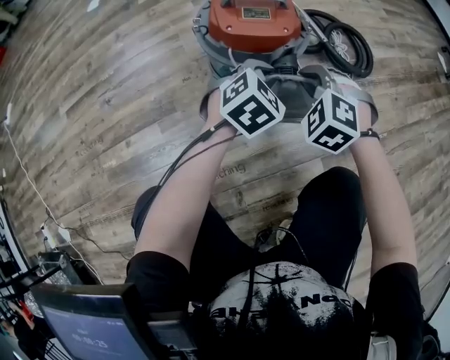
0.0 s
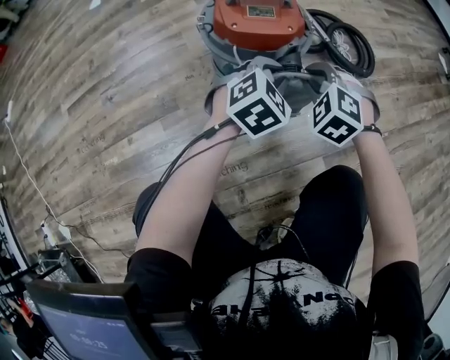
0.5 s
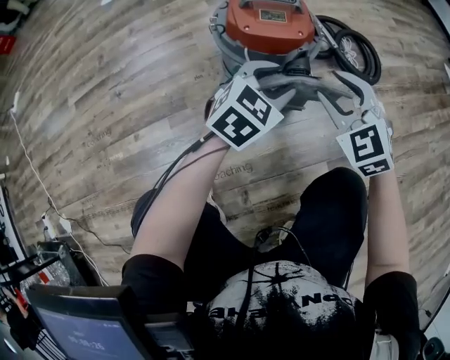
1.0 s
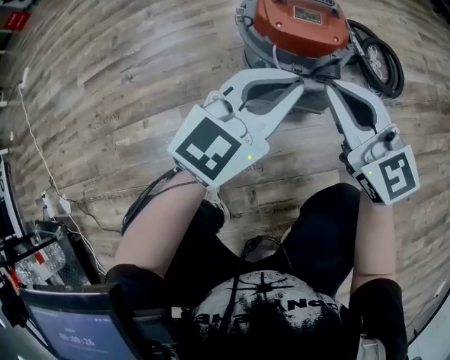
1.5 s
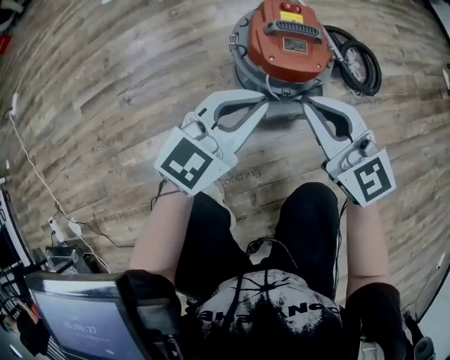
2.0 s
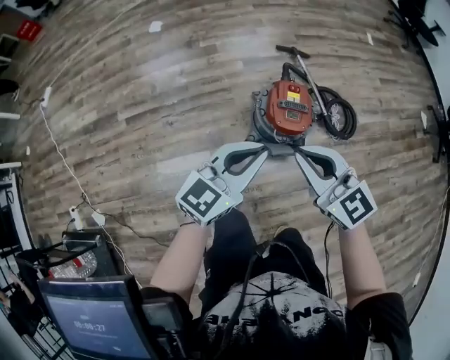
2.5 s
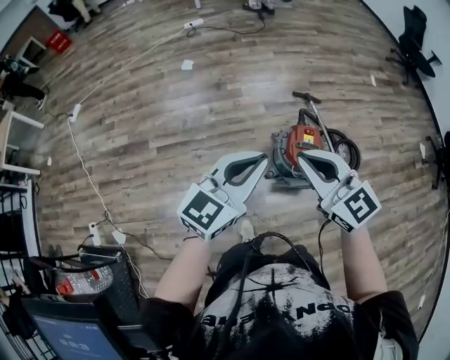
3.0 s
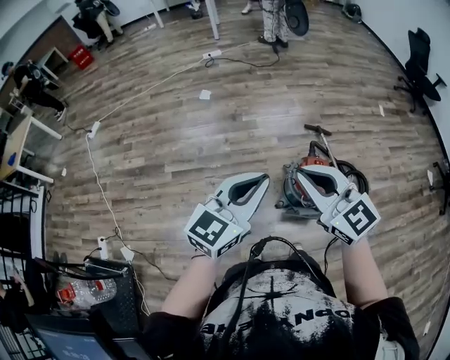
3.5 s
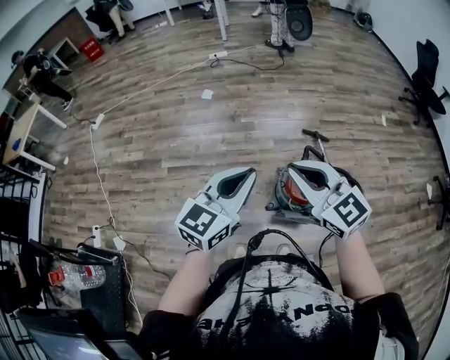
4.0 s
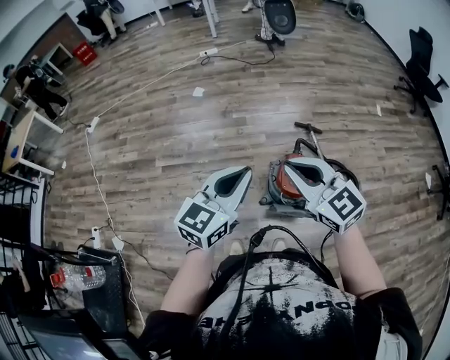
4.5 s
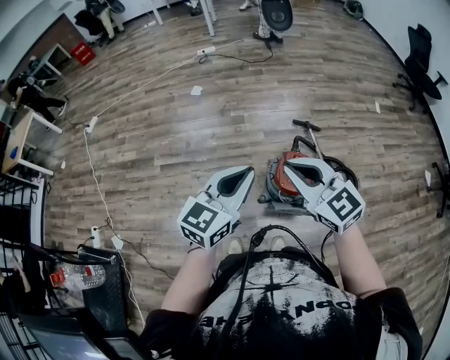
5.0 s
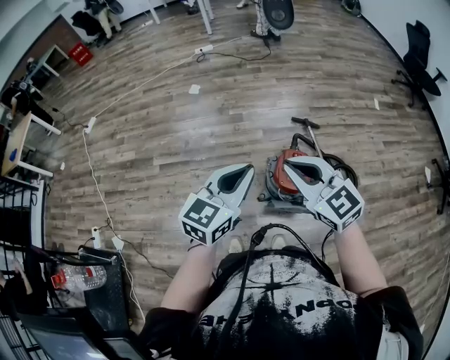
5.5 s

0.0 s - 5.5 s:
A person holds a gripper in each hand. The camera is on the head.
0.0 s - 2.0 s: The grippers both shift upward and to the left by approximately 20 cm. The right gripper tips its fingers upward by roughly 40 degrees, and opens and closes again, while the left gripper angles its fingers upward, by roughly 30 degrees, and opens and closes again.
2.0 s - 3.5 s: The grippers both shift upward and to the left by approximately 60 cm. The left gripper changes its angle by approximately 20 degrees.
3.5 s - 5.5 s: The two grippers go some 15 cm to the right.

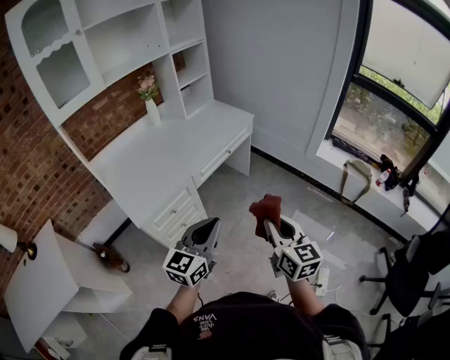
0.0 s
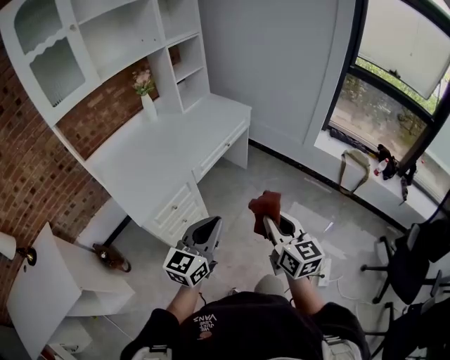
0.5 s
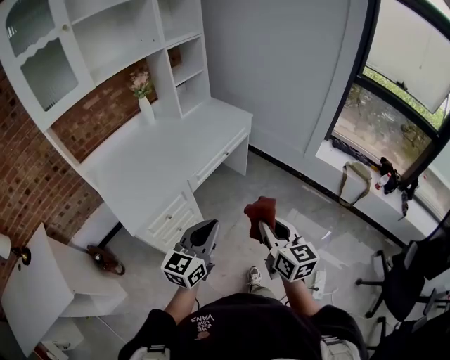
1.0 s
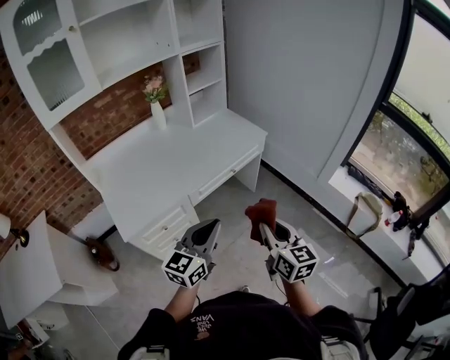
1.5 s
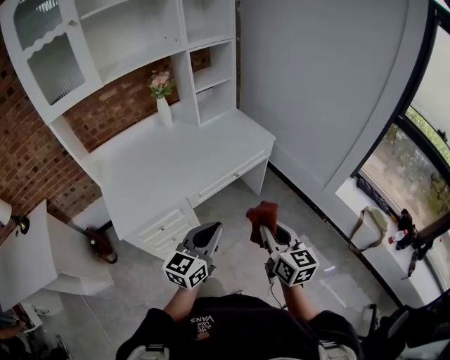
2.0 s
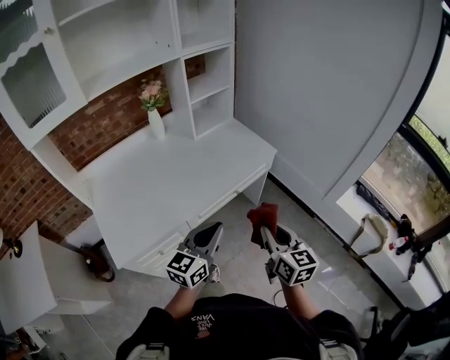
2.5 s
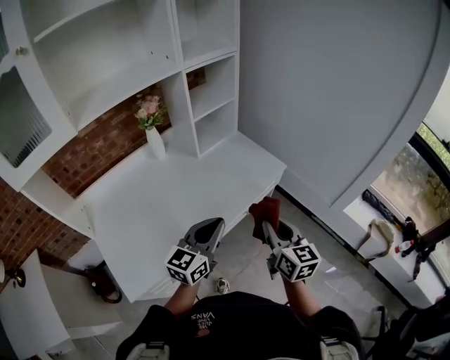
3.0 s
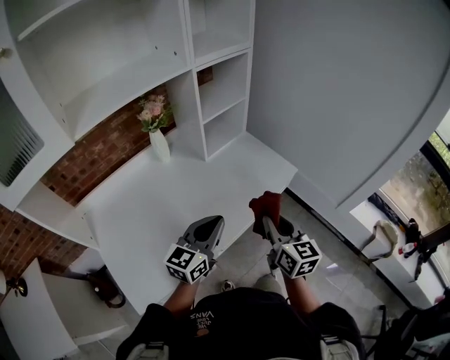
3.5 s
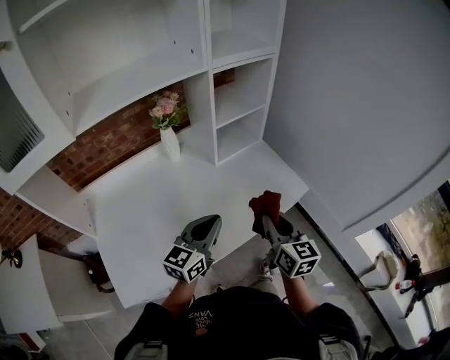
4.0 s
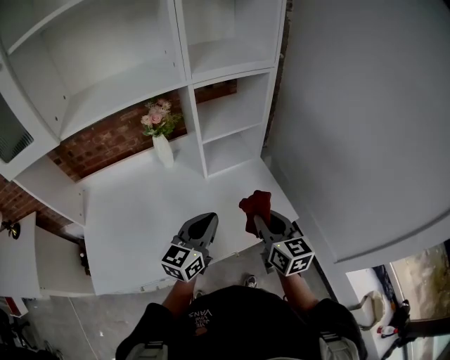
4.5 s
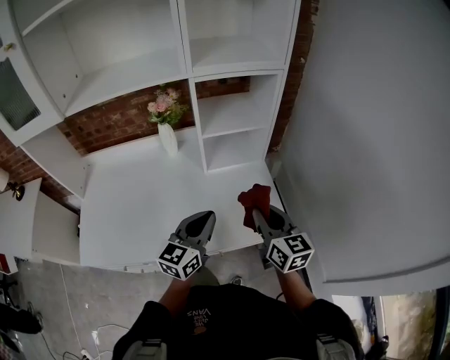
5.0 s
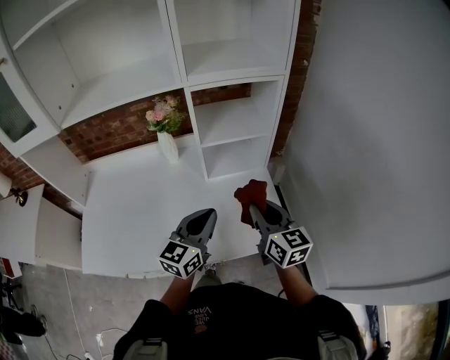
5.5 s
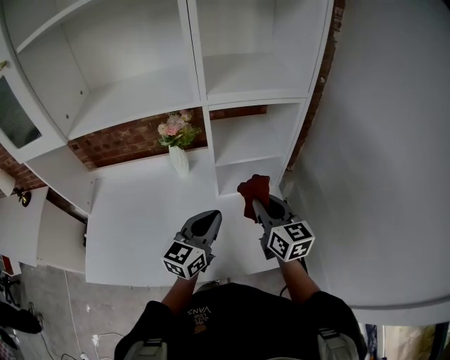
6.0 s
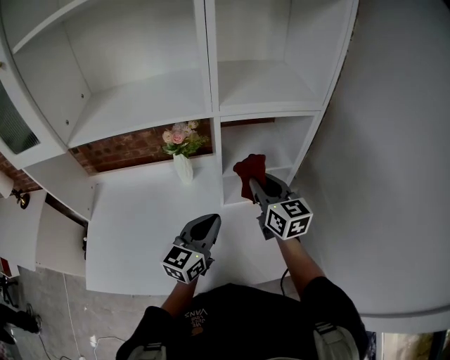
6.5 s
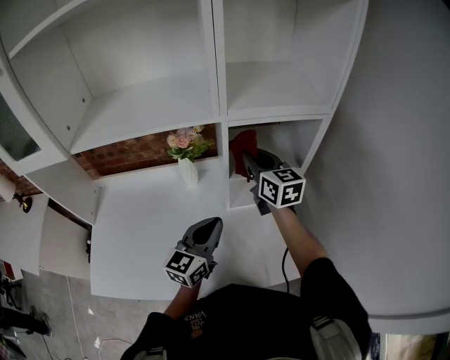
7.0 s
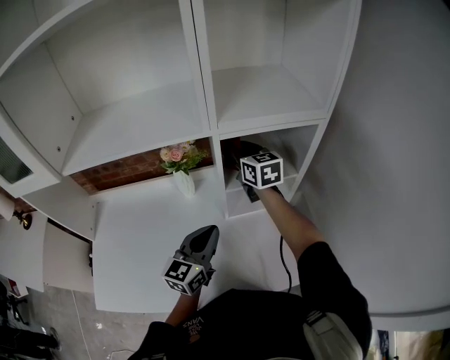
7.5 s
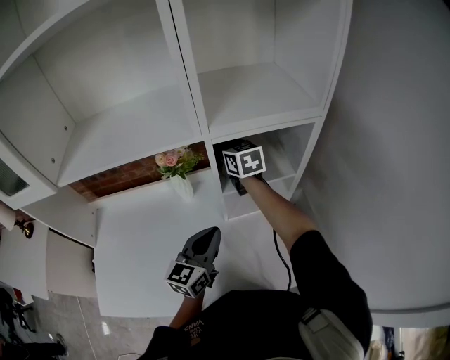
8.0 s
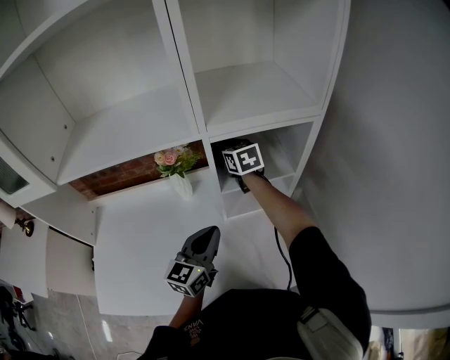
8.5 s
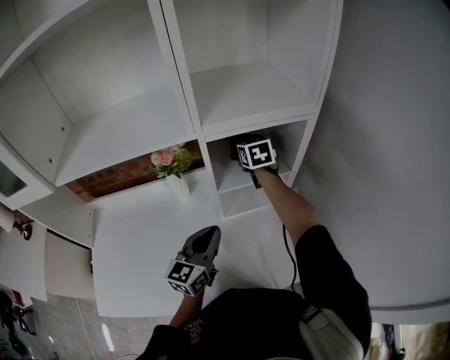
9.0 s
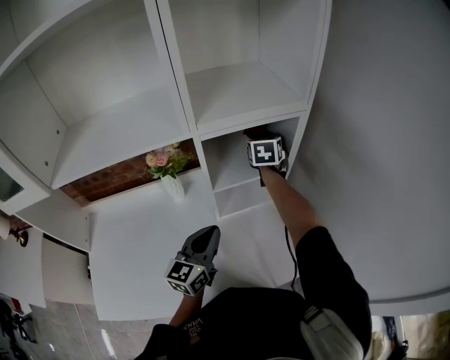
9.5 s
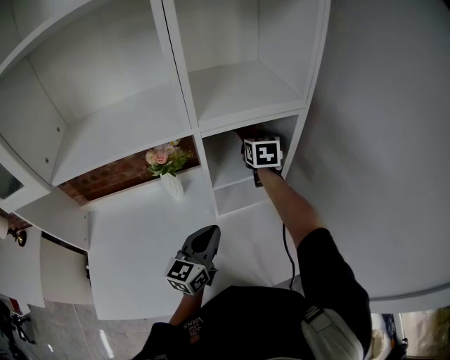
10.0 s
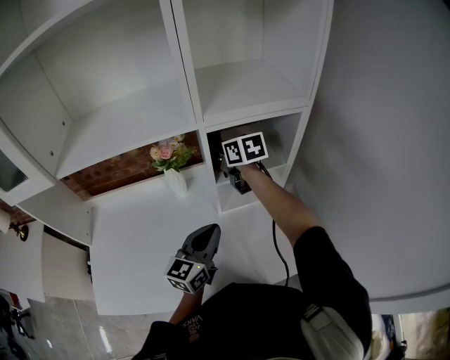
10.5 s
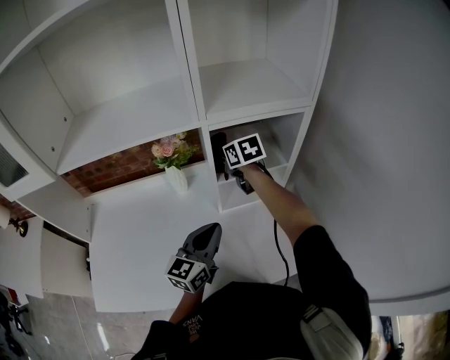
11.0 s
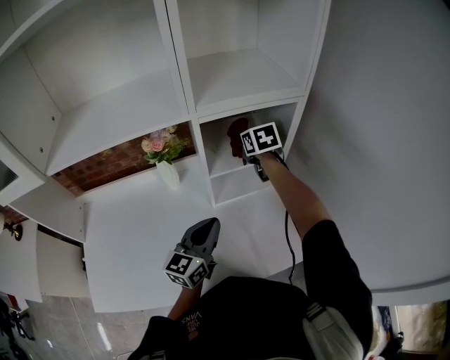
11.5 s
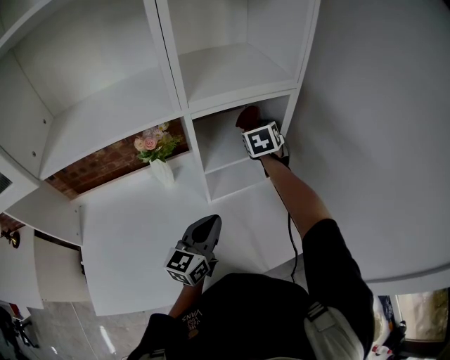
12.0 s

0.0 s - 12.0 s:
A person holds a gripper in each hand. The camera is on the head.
0.0 s - 2.0 s: Both grippers move forward, some 20 cm.
2.0 s - 4.0 s: The pair of grippers is taken forward and to the left, about 40 cm.
4.0 s - 6.0 s: The right gripper shifts by approximately 25 cm, and turns by approximately 30 degrees. Meanwhile the left gripper shifts by about 20 cm, and turns by about 20 degrees.
6.0 s - 8.0 s: The left gripper moves forward, about 10 cm. Meanwhile the right gripper moves forward and to the left, roughly 35 cm.
8.0 s - 10.0 s: The right gripper shifts some 15 cm to the right, and turns by roughly 20 degrees.
10.0 s - 12.0 s: The right gripper travels to the left and back again, approximately 15 cm each way.

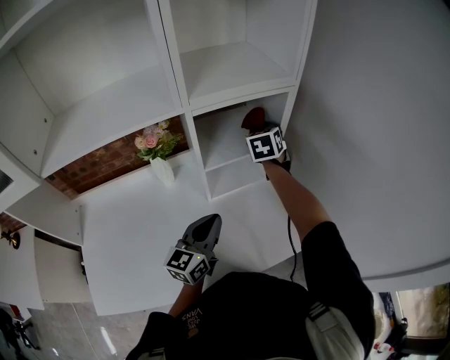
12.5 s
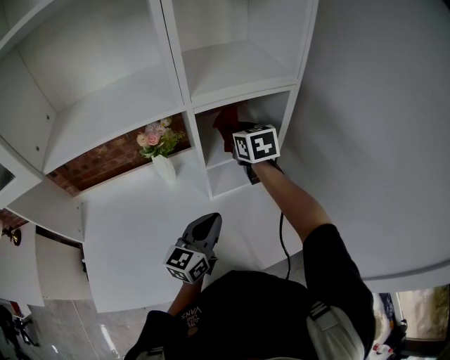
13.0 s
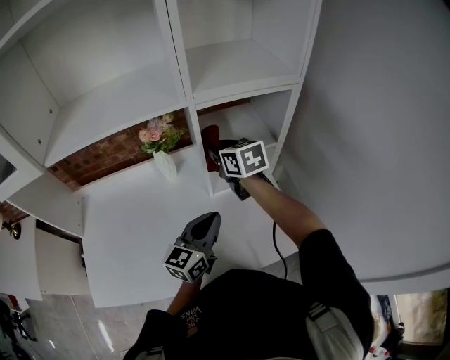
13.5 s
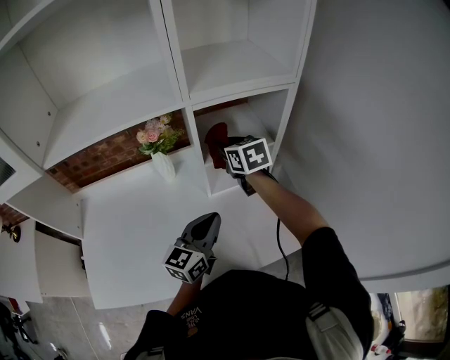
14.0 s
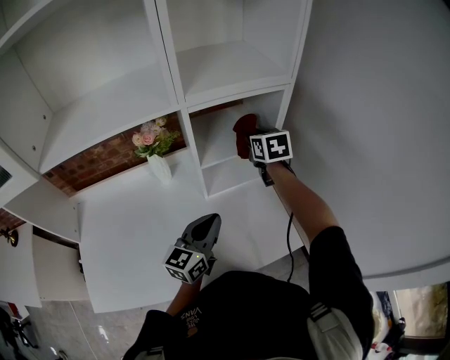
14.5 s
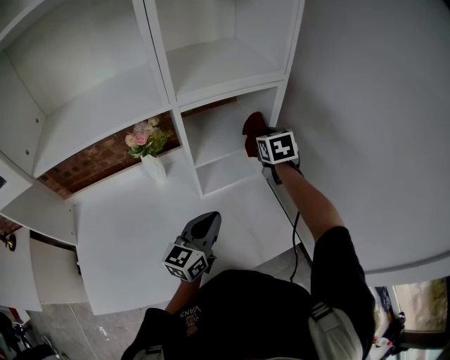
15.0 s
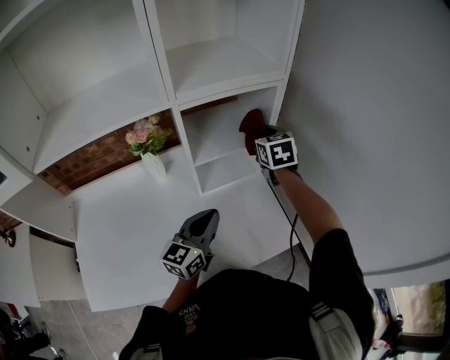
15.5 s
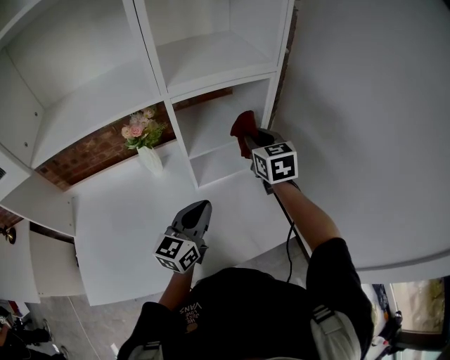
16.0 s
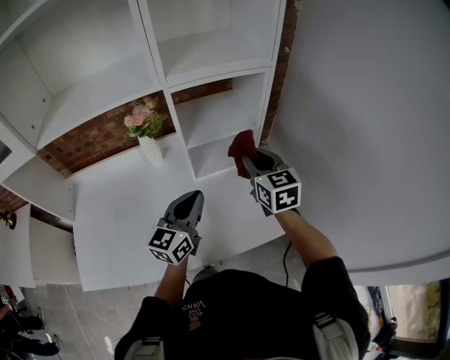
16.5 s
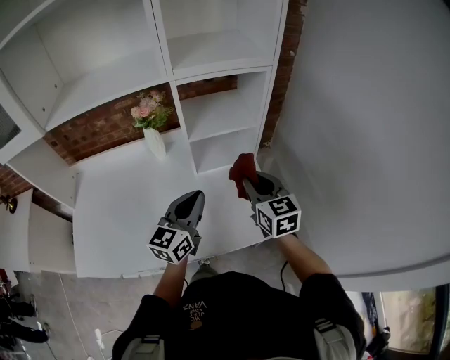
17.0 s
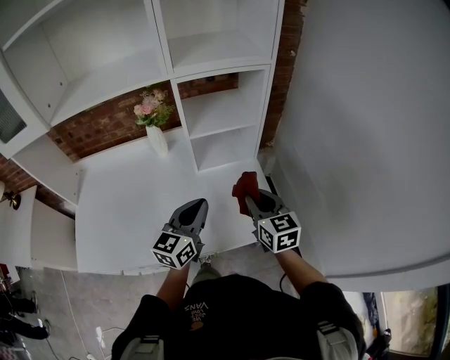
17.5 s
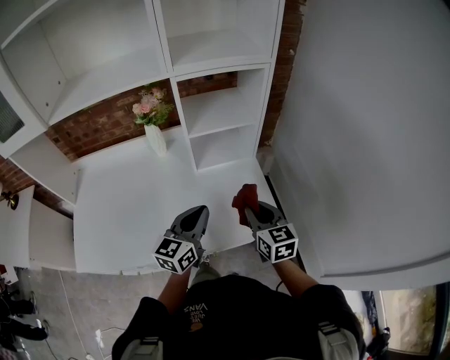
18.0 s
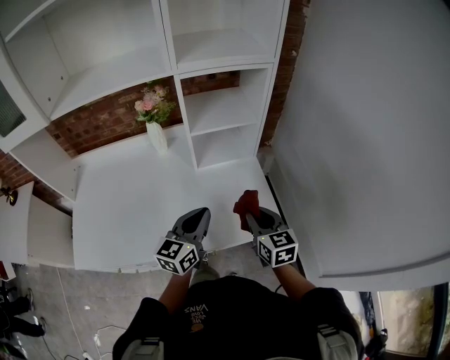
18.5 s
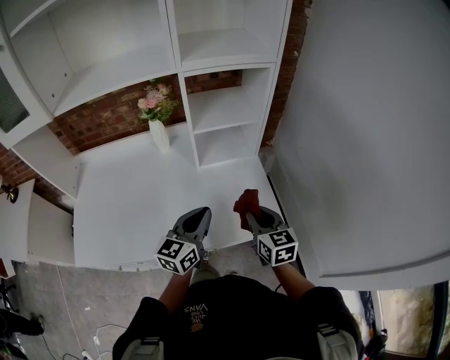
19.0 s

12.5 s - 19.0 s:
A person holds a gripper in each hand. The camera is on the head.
12.5 s - 14.5 s: The right gripper travels to the left and back again, roughly 15 cm each way, and changes its angle by some 20 degrees.
14.5 s - 17.0 s: The left gripper shifts by roughly 5 cm. The right gripper shifts roughly 25 cm backward.
17.0 s - 19.0 s: The right gripper is displaced backward and downward by some 15 cm; the left gripper goes about 10 cm backward and downward.

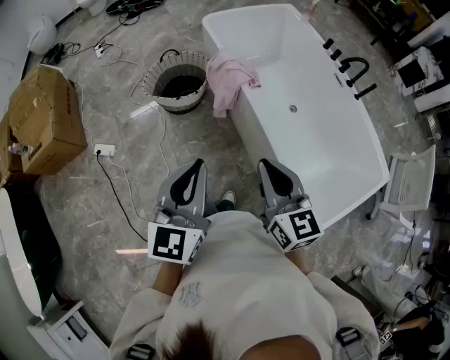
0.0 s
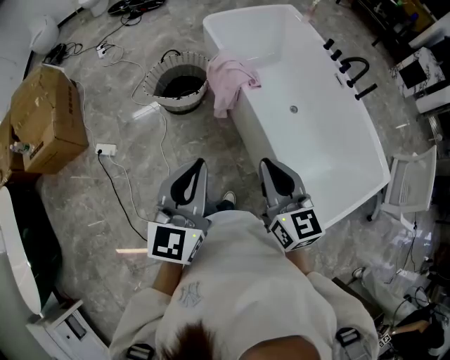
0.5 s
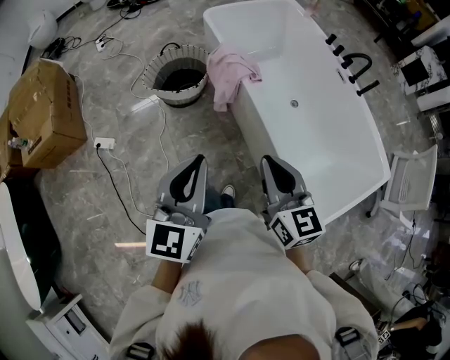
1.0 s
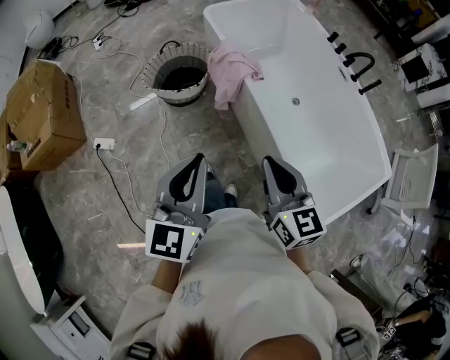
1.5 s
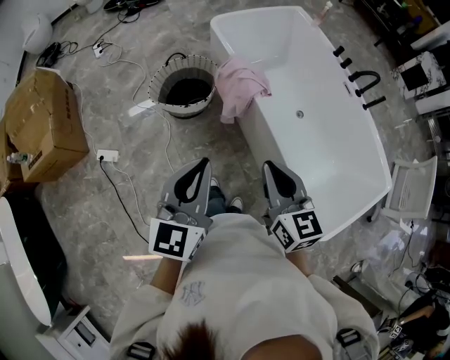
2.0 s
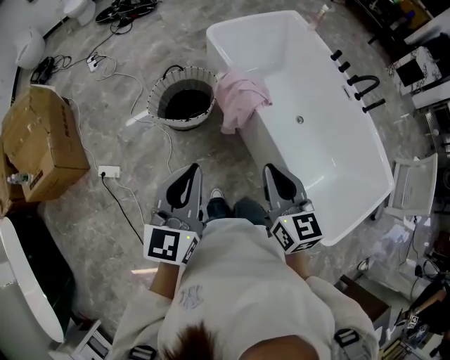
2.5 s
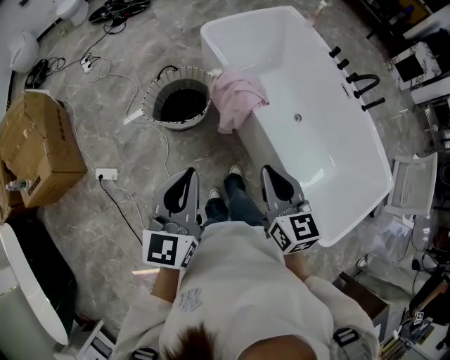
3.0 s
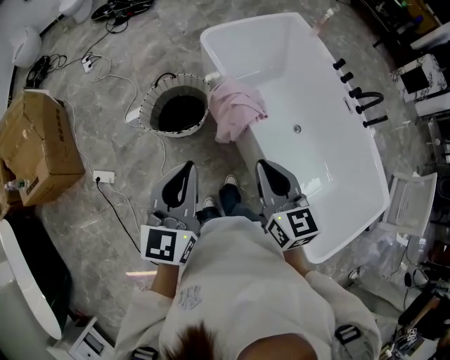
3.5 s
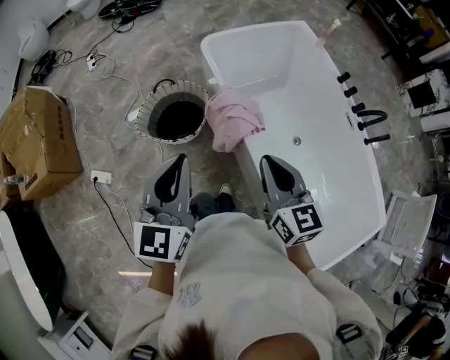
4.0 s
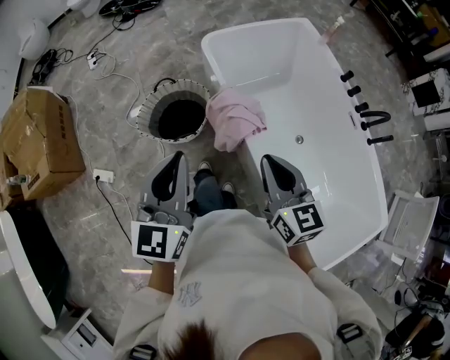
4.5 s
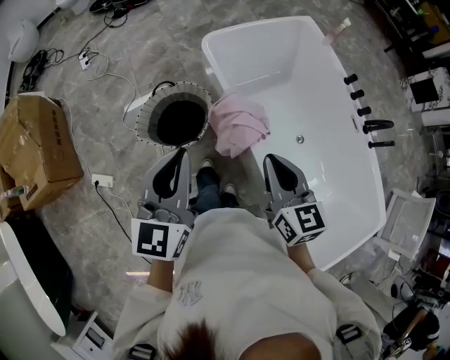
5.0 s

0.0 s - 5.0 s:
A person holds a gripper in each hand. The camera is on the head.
0.0 s - 2.5 s: Both grippers move forward and to the left, about 15 cm.
2.5 s - 5.0 s: The two grippers go about 25 cm forward.
